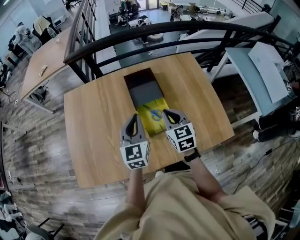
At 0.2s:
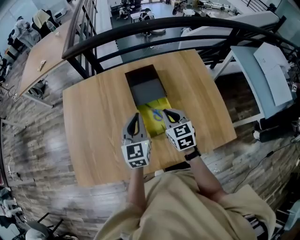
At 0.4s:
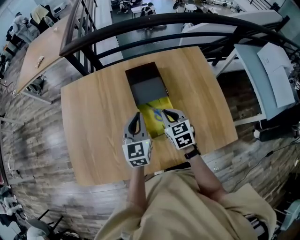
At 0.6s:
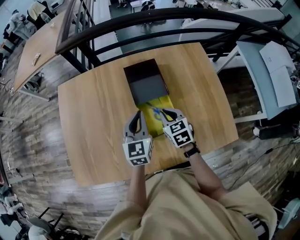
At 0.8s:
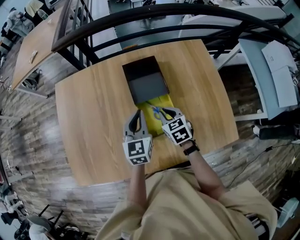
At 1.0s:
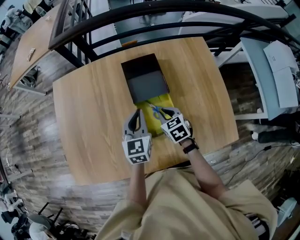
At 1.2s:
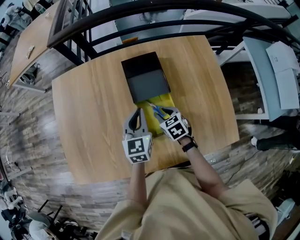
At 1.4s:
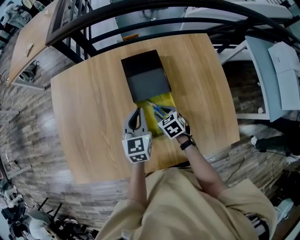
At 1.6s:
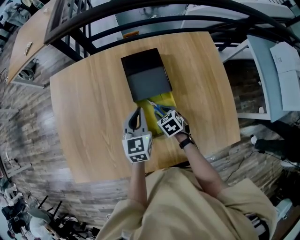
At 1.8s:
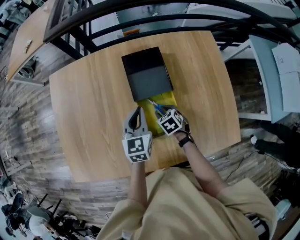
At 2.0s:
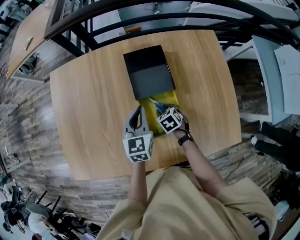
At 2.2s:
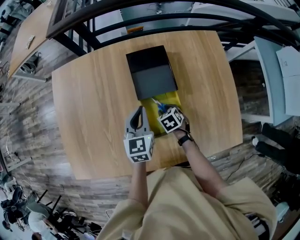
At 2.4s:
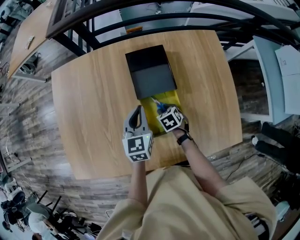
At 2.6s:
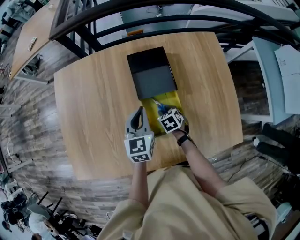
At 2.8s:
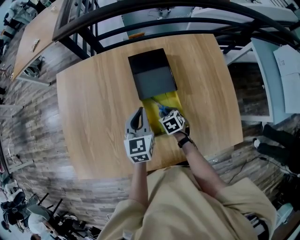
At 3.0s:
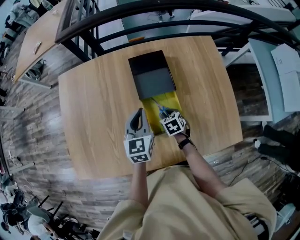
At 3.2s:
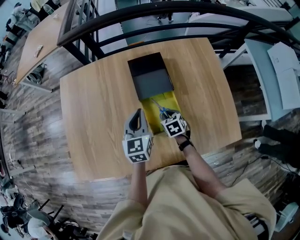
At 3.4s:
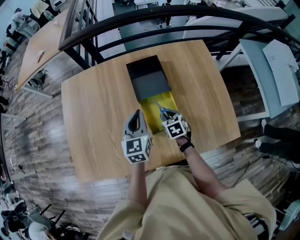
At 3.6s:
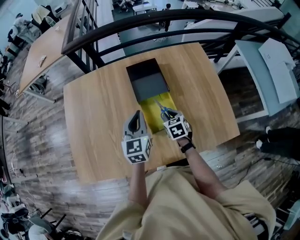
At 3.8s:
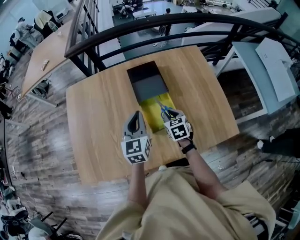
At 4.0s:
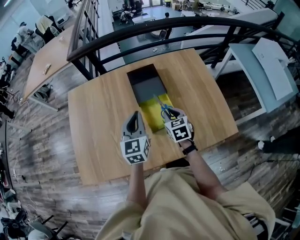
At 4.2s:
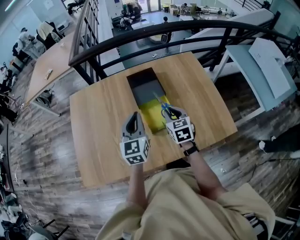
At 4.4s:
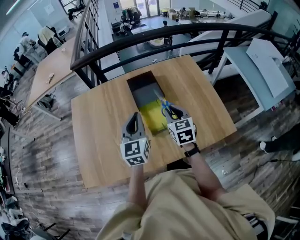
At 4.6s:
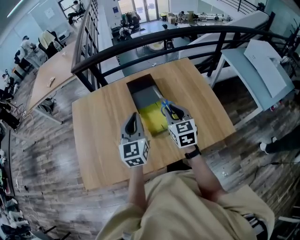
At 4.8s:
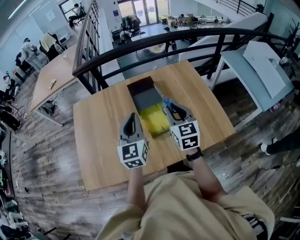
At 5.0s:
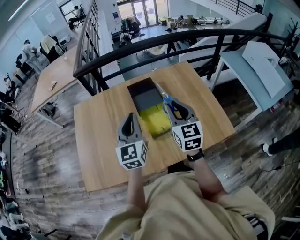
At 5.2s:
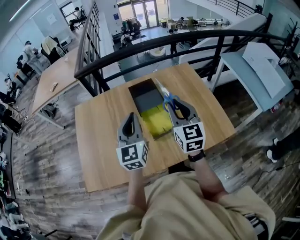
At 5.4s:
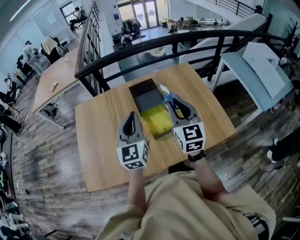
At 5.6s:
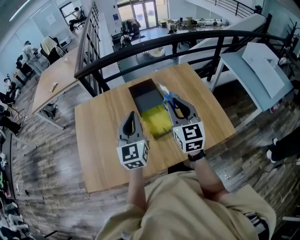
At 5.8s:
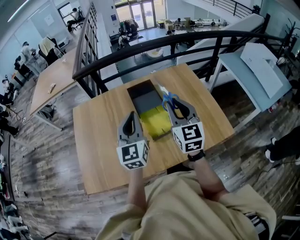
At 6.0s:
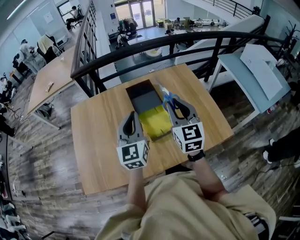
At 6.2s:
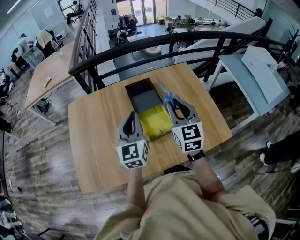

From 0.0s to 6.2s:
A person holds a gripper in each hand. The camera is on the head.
From 0.0s to 1.6s: The right gripper moves downward, approximately 25 cm, tilts its fingers about 40 degrees downward, and opens. Meanwhile the left gripper heads downward and forward, covering about 15 cm.
From 1.6s to 3.2s: The left gripper moves some 5 cm.
From 3.2s to 4.6s: The left gripper is displaced upward and backward by some 20 cm. Meanwhile the right gripper is displaced upward and backward by about 30 cm, and angles its fingers upward, by some 40 degrees.
From 4.6s to 6.2s: The right gripper is displaced upward by some 10 cm.

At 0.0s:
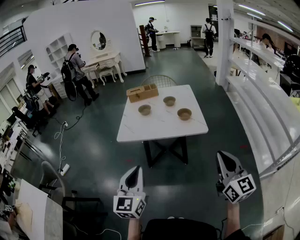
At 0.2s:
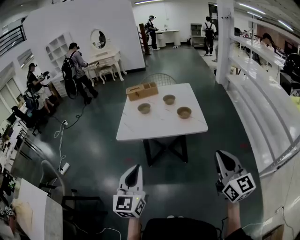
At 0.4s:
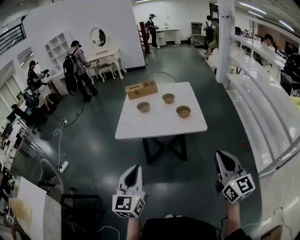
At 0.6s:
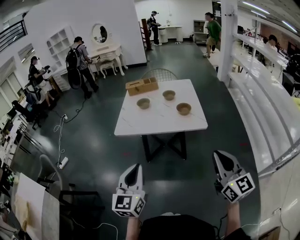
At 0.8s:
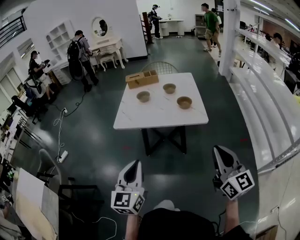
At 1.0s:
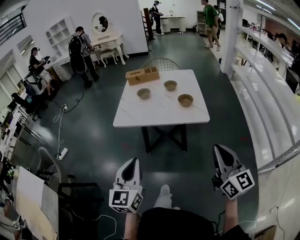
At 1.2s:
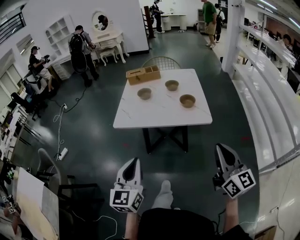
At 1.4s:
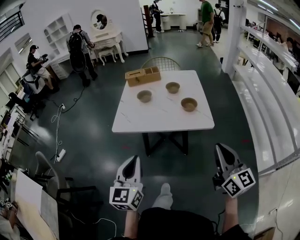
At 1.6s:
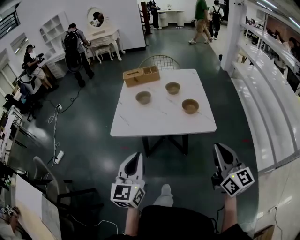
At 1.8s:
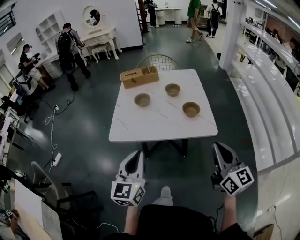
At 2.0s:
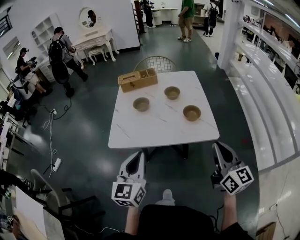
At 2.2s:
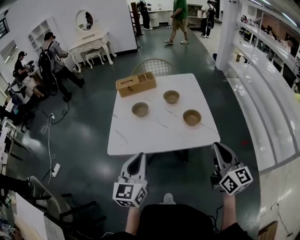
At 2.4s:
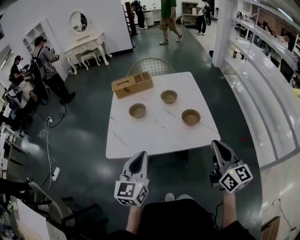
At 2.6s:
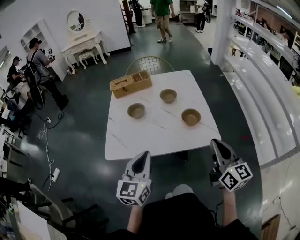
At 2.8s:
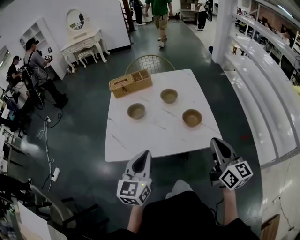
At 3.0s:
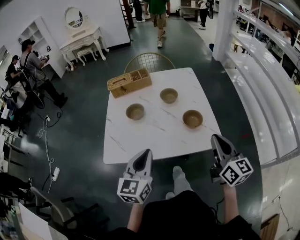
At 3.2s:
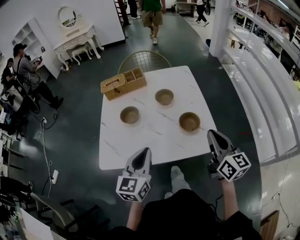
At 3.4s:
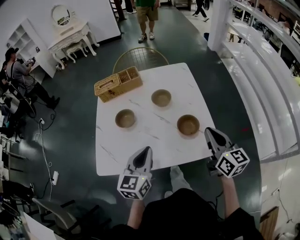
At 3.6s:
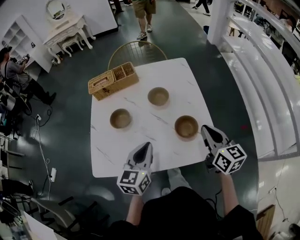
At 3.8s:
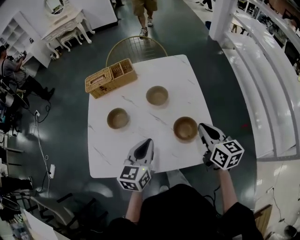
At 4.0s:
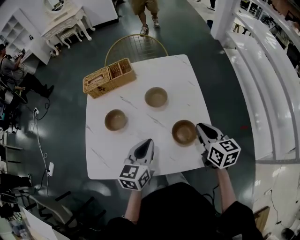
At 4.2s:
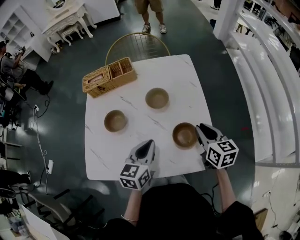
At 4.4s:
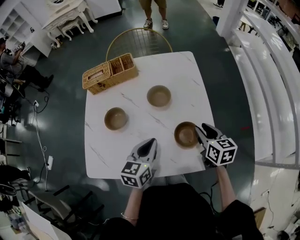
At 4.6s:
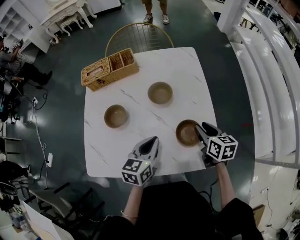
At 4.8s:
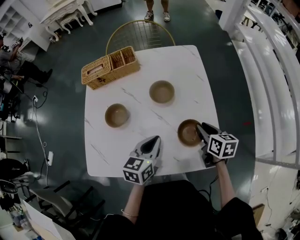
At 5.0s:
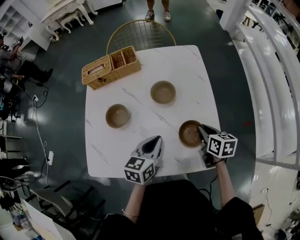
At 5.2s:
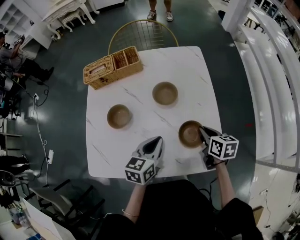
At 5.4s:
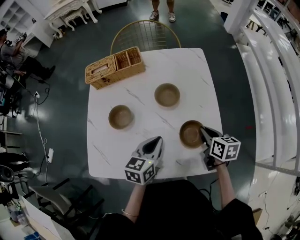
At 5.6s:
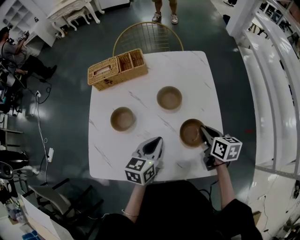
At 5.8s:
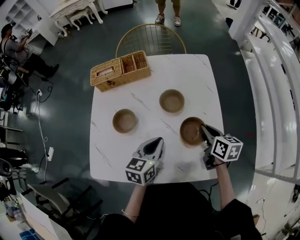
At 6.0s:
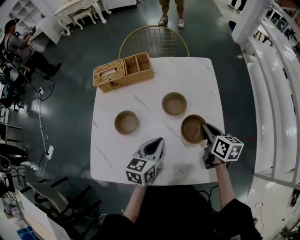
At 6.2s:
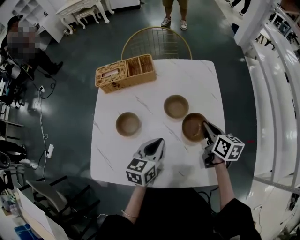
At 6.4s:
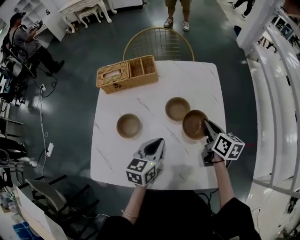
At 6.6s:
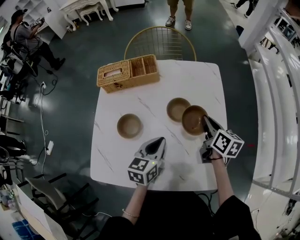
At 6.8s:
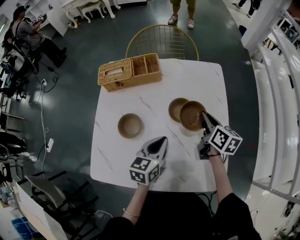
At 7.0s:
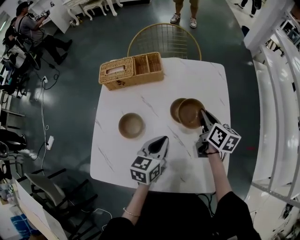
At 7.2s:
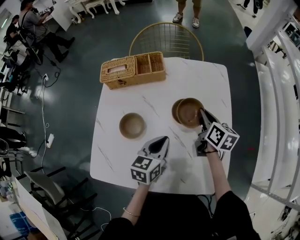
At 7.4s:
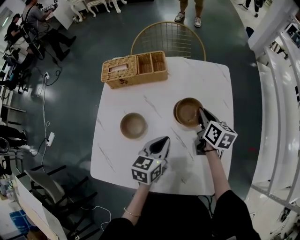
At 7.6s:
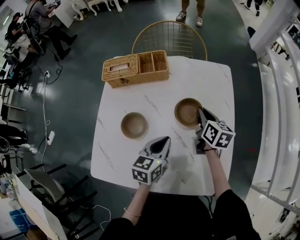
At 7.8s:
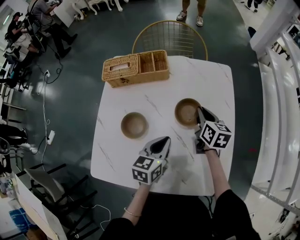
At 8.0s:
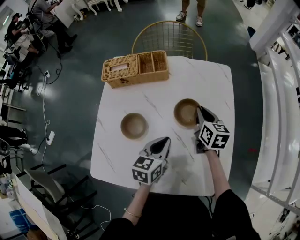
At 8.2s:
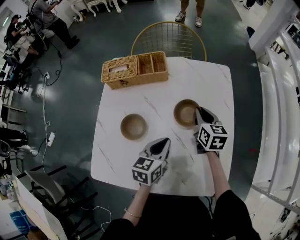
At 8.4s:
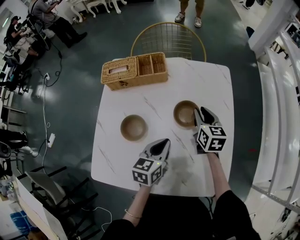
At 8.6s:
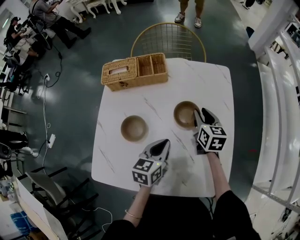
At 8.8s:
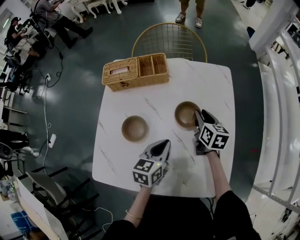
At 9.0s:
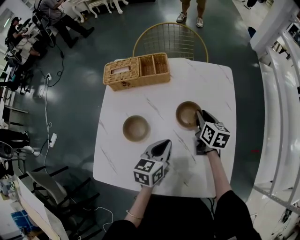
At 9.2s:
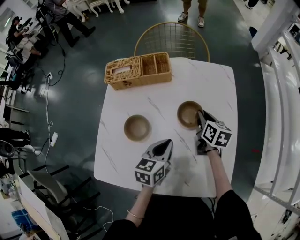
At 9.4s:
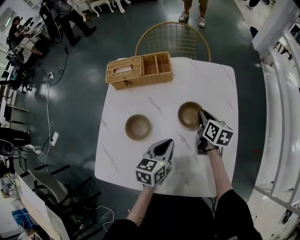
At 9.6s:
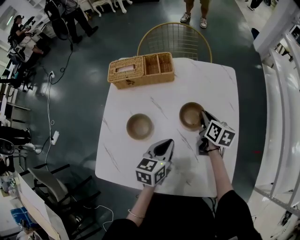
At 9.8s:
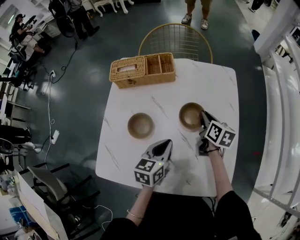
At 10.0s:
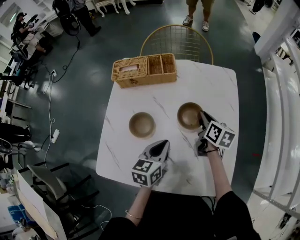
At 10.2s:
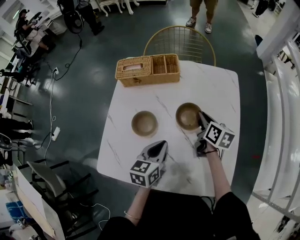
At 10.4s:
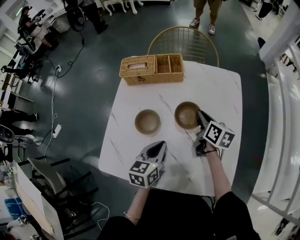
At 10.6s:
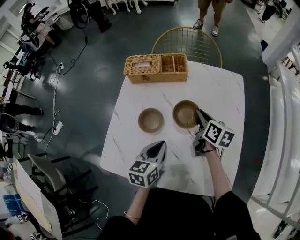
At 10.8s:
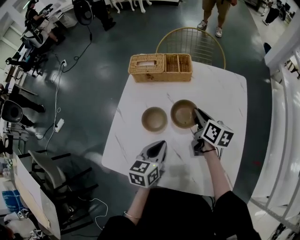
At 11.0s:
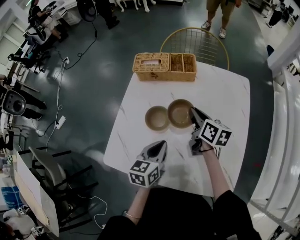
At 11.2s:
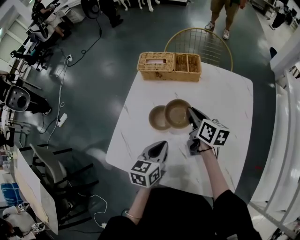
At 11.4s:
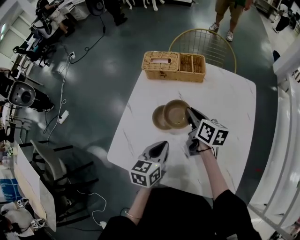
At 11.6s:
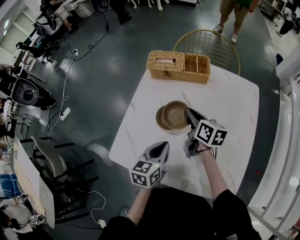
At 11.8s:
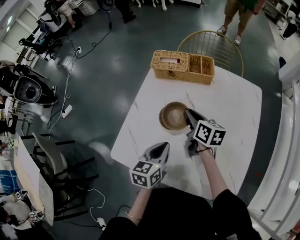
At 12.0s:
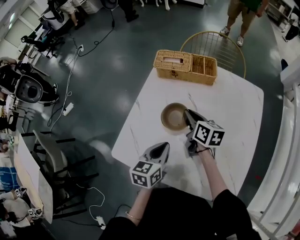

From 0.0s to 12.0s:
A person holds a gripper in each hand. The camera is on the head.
From 0.0s to 1.6s: The two grippers go roughly 15 cm forward.
From 1.6s to 3.0s: Both grippers travel together forward, about 20 cm.
From 3.0s to 4.4s: The right gripper shifts approximately 30 cm forward and downward, angles its fingers downward, by some 30 degrees, and opens; the left gripper heads forward, downward and to the right, covering roughly 25 cm, and turns by about 20 degrees.
From 4.4s to 6.0s: The right gripper moves forward, about 10 cm, while the left gripper travels forward by about 5 cm.
From 6.0s to 7.6s: The left gripper shifts by about 5 cm. The right gripper goes approximately 15 cm forward and to the left.
From 7.6s to 9.0s: There are only small adjustments of the grippers.
From 9.0s to 10.4s: Both grippers move to the left, some 5 cm.
From 10.4s to 12.0s: The left gripper shifts approximately 10 cm to the left. Meanwhile the right gripper is displaced to the left by some 20 cm, and turns by some 20 degrees.

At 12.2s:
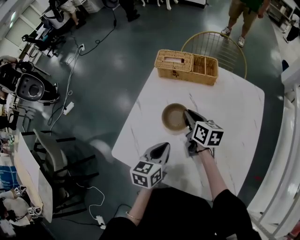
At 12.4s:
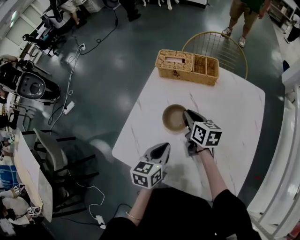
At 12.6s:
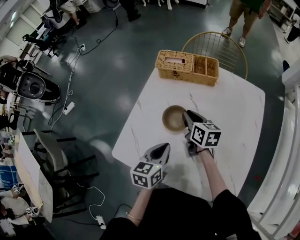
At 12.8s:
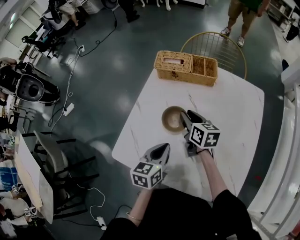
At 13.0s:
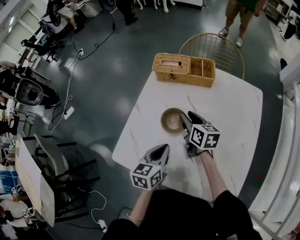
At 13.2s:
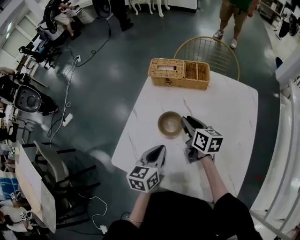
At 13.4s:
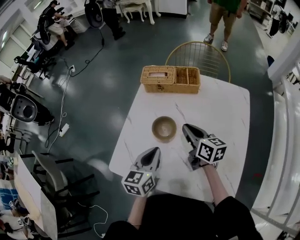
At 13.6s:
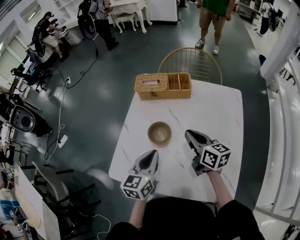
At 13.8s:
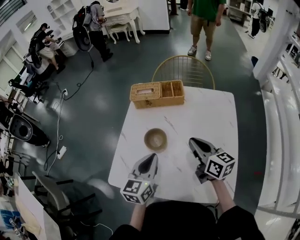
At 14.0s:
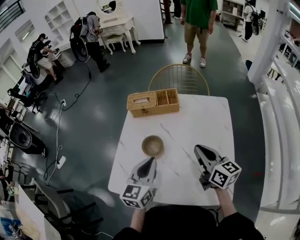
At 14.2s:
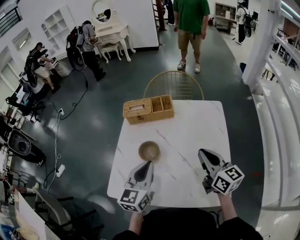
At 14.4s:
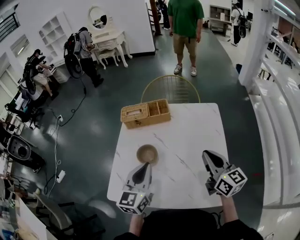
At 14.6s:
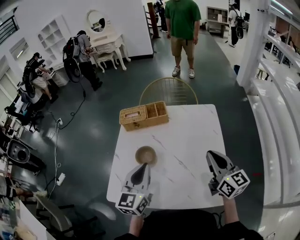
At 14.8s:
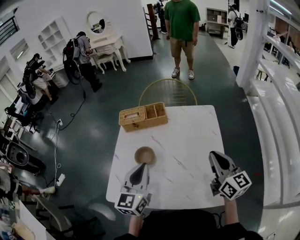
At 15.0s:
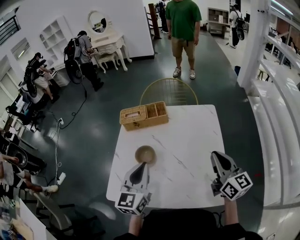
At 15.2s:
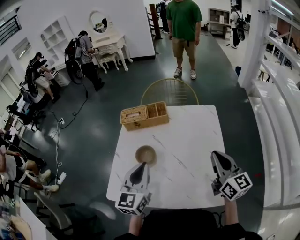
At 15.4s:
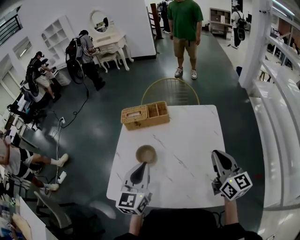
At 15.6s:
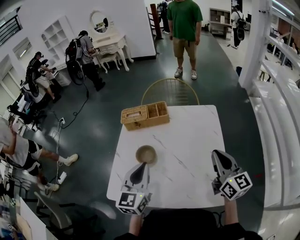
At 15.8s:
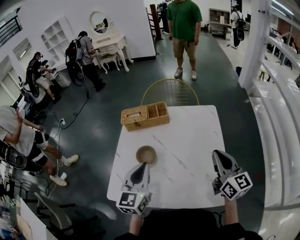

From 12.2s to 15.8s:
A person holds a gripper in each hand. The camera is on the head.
From 12.2s to 14.0s: The right gripper shifts approximately 25 cm to the right, upward and backward, and rotates roughly 20 degrees; the left gripper travels upward by approximately 10 cm, and changes its angle by roughly 20 degrees.
From 14.0s to 15.8s: The right gripper travels to the right, upward and backward by roughly 15 cm, and changes its angle by approximately 20 degrees. Meanwhile the left gripper travels upward by approximately 5 cm.

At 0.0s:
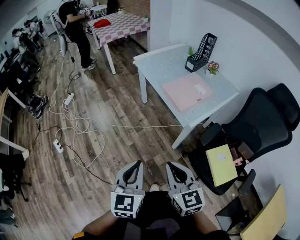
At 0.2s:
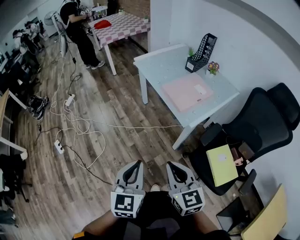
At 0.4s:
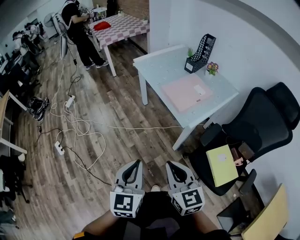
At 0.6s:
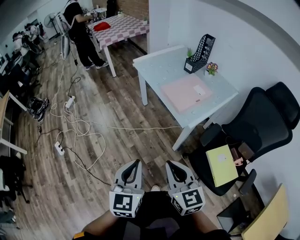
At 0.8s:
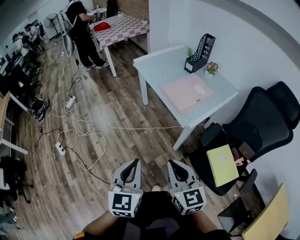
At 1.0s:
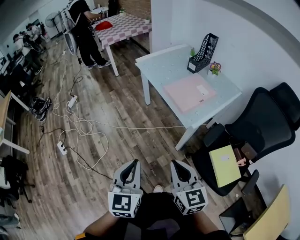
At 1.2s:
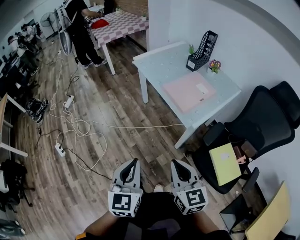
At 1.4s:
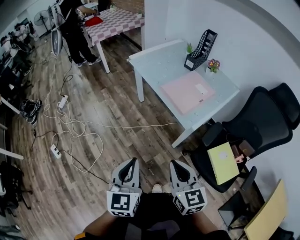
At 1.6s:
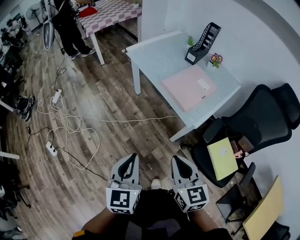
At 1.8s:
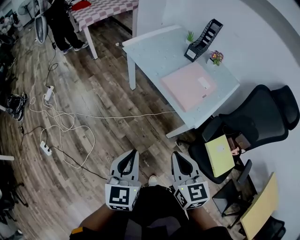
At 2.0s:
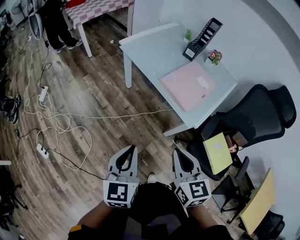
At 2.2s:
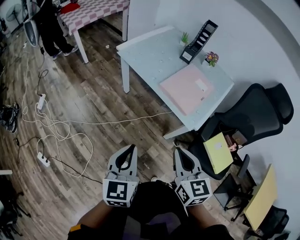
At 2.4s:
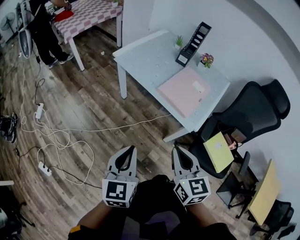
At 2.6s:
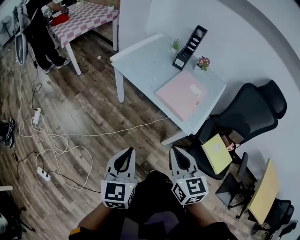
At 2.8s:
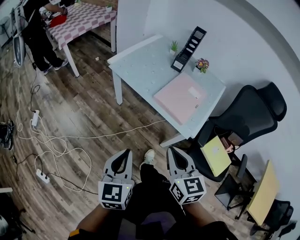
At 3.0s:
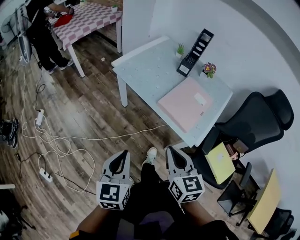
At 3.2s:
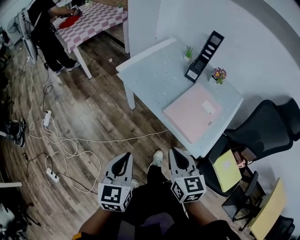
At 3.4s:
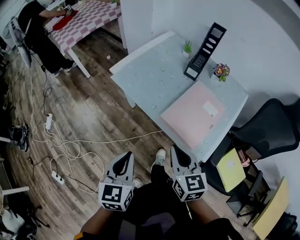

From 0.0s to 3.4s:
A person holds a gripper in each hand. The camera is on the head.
From 0.0s to 1.6s: The left gripper moves forward and to the left, some 10 cm. The right gripper heads forward, covering approximately 10 cm.
From 1.6s to 3.4s: Both grippers move forward, roughly 30 cm.
